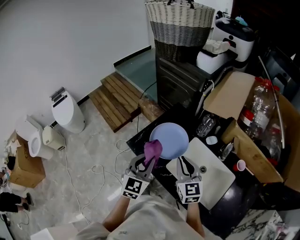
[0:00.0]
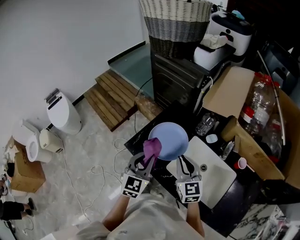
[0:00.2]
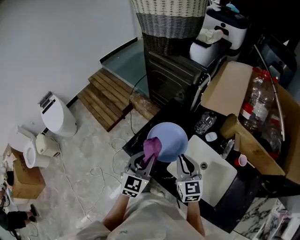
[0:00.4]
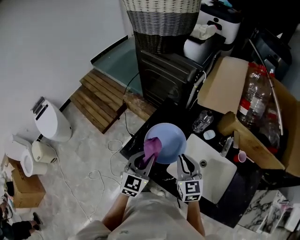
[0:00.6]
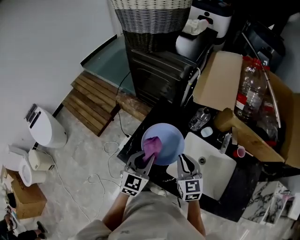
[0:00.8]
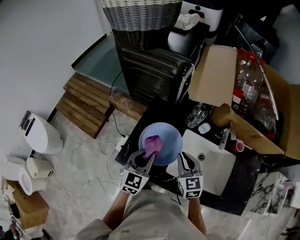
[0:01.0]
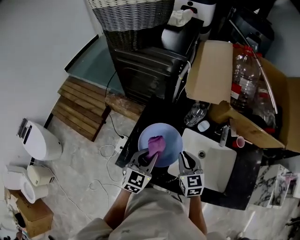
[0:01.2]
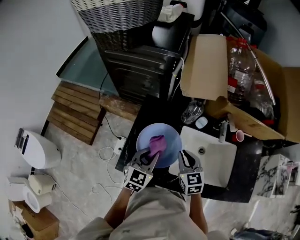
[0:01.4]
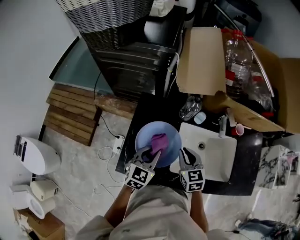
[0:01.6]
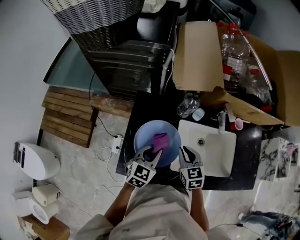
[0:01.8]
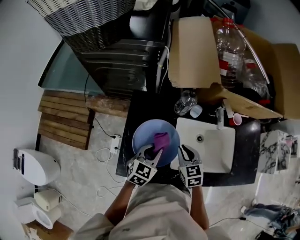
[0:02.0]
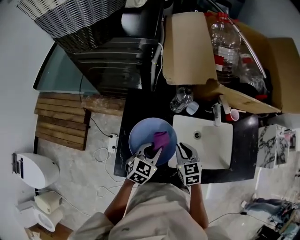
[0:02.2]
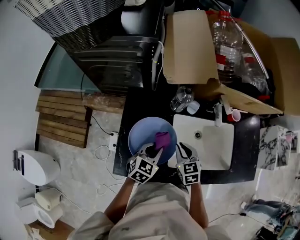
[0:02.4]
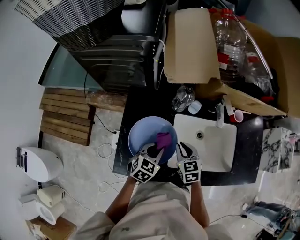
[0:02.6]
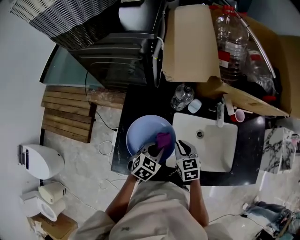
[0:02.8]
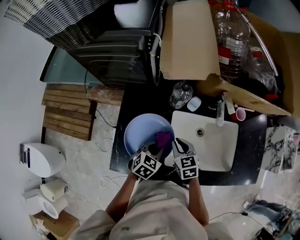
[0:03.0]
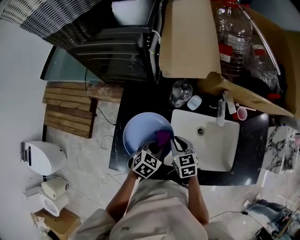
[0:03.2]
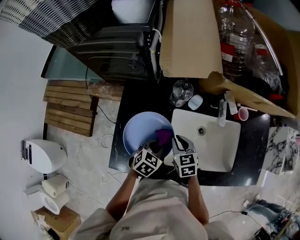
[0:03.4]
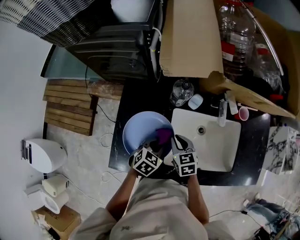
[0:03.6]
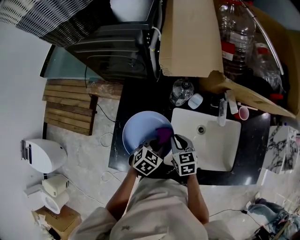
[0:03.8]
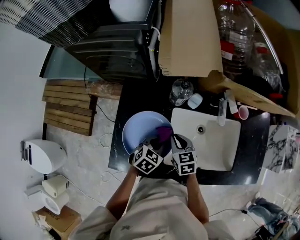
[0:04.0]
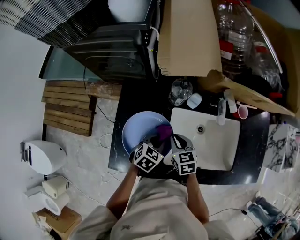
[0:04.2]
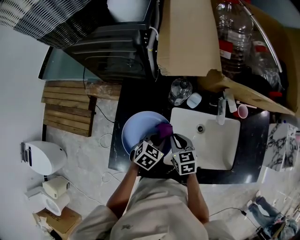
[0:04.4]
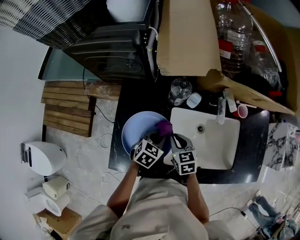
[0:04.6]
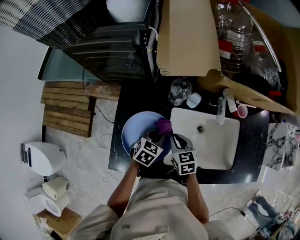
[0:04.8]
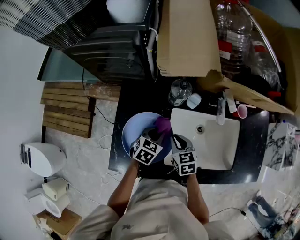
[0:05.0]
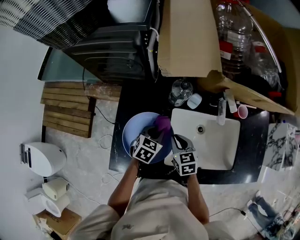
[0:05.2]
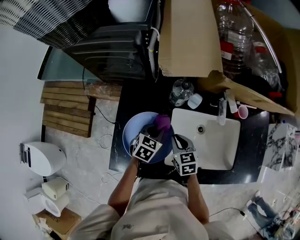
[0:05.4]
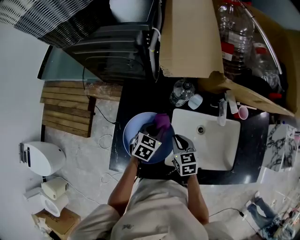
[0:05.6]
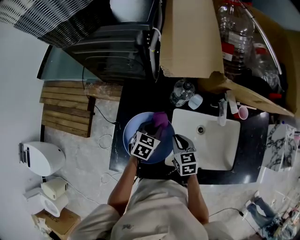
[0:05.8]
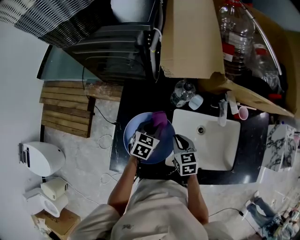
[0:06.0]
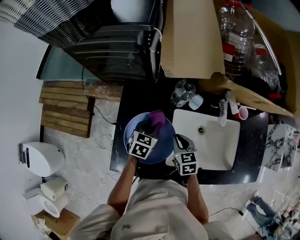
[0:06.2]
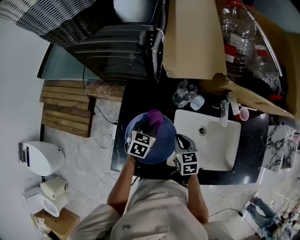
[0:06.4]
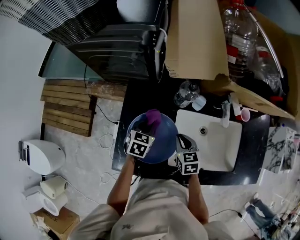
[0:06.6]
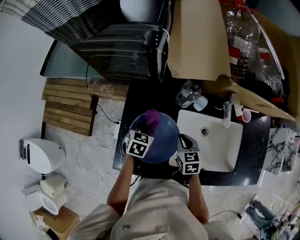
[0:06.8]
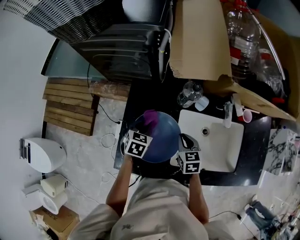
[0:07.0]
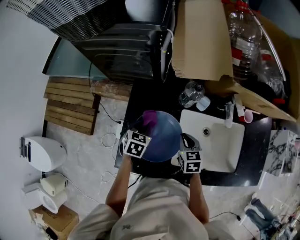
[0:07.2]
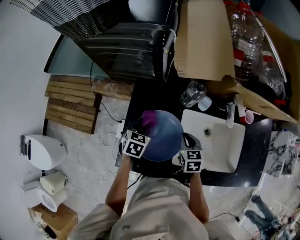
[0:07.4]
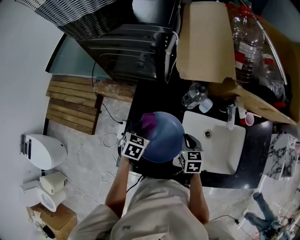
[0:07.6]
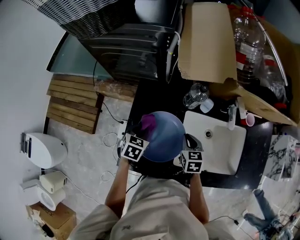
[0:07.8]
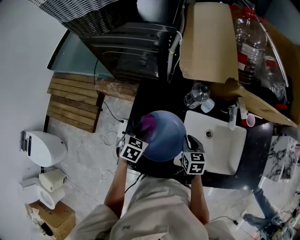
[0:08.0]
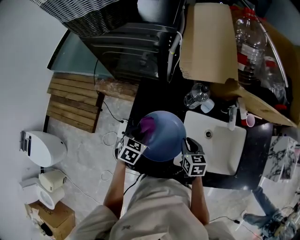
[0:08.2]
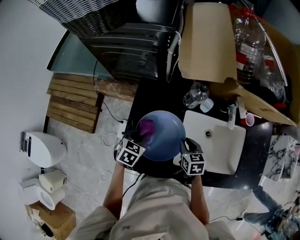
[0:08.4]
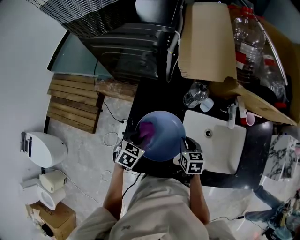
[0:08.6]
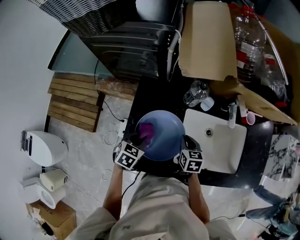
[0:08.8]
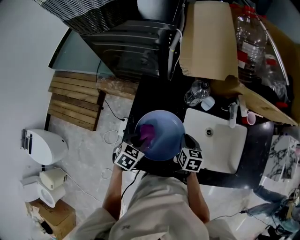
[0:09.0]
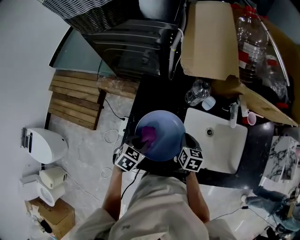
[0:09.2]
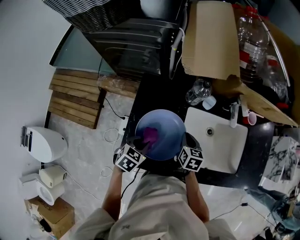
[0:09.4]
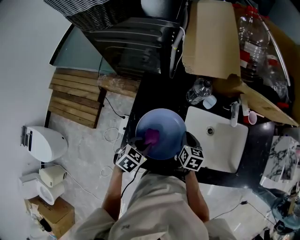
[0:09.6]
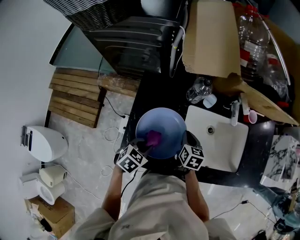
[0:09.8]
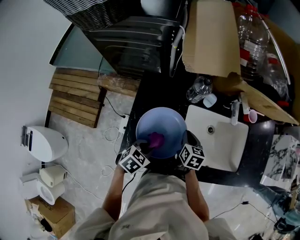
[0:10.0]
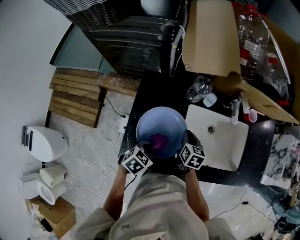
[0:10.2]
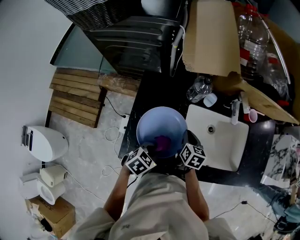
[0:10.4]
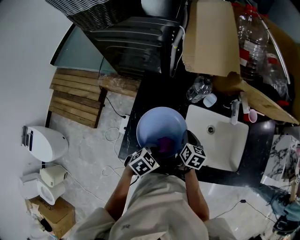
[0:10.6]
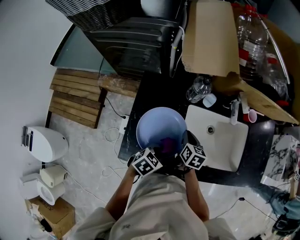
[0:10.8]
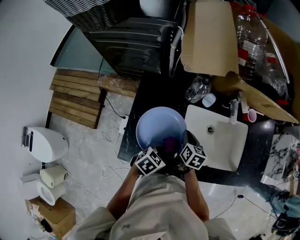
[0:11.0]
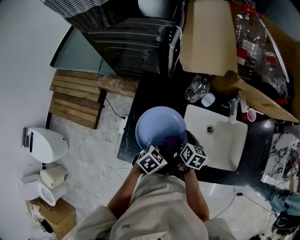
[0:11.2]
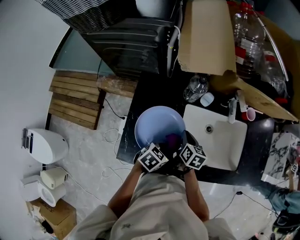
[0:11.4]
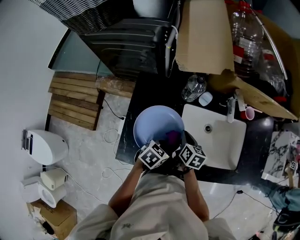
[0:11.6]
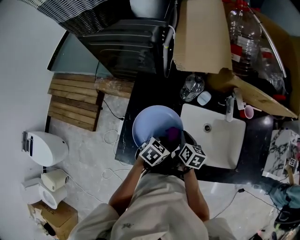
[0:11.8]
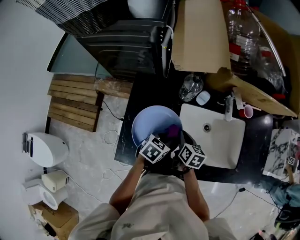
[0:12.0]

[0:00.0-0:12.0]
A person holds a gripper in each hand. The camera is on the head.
0:00.0 to 0:01.6: The left gripper moves approximately 20 cm, and rotates roughly 40 degrees, while the right gripper shifts some 10 cm downward, and rotates some 40 degrees.
0:01.6 to 0:03.0: The right gripper travels downward by approximately 10 cm. The left gripper travels downward and to the right by some 10 cm, and rotates about 30 degrees.
0:03.0 to 0:04.4: The grippers stay close to where they were, moving slightly.
0:04.4 to 0:06.0: The left gripper moves forward and to the left, about 10 cm.
0:06.0 to 0:07.6: The left gripper moves to the left, roughly 10 cm.
0:07.6 to 0:09.0: The left gripper moves backward, some 10 cm.
0:09.0 to 0:10.4: The left gripper heads to the right, covering about 10 cm.
0:10.4 to 0:12.0: The left gripper is displaced forward by roughly 10 cm.

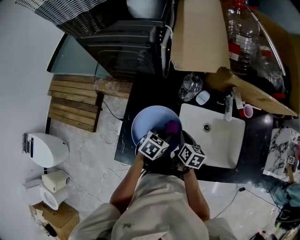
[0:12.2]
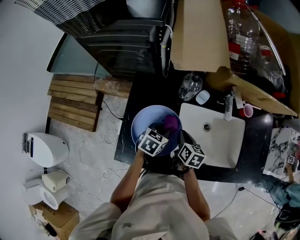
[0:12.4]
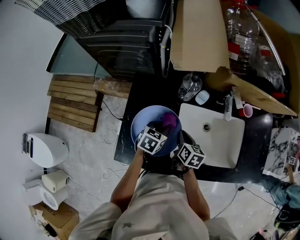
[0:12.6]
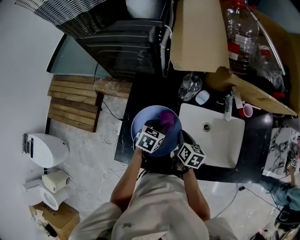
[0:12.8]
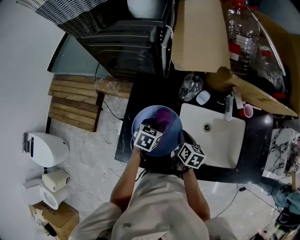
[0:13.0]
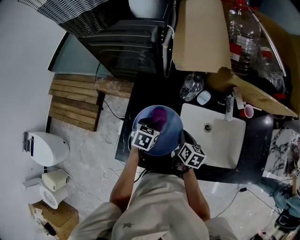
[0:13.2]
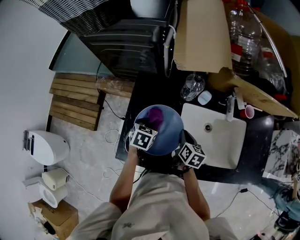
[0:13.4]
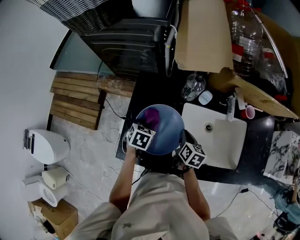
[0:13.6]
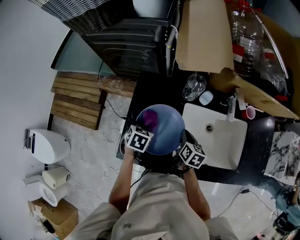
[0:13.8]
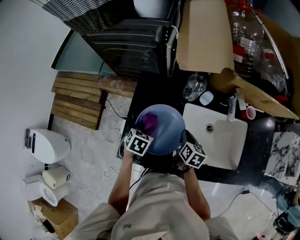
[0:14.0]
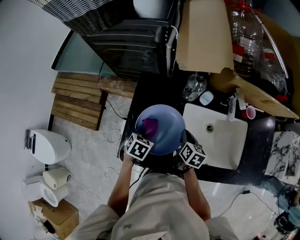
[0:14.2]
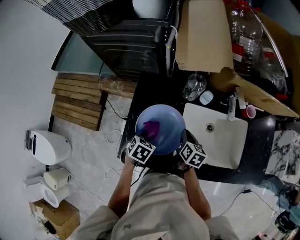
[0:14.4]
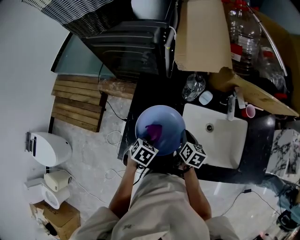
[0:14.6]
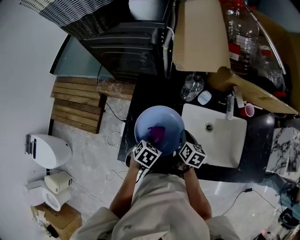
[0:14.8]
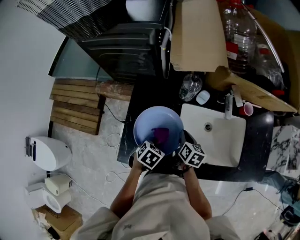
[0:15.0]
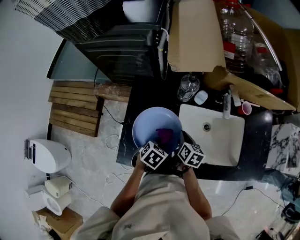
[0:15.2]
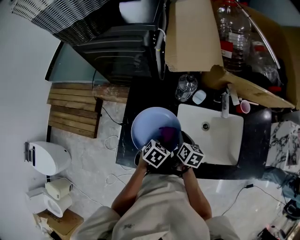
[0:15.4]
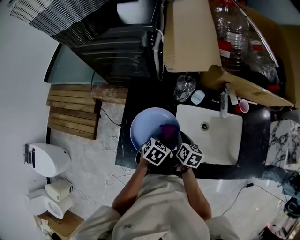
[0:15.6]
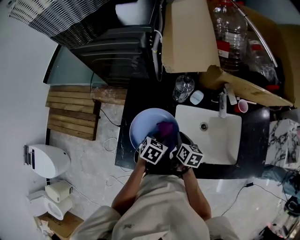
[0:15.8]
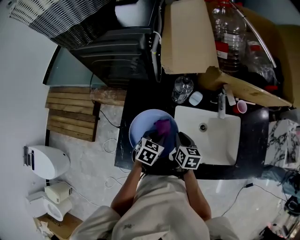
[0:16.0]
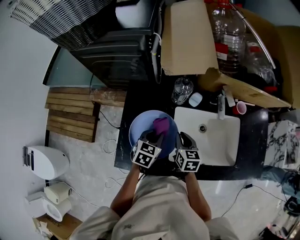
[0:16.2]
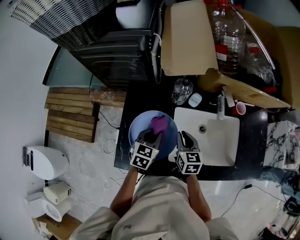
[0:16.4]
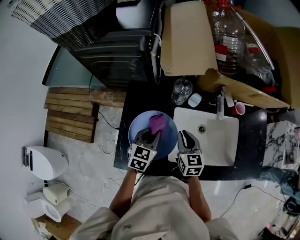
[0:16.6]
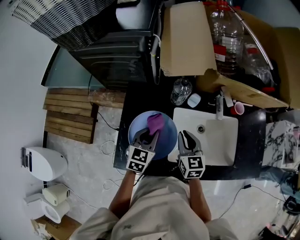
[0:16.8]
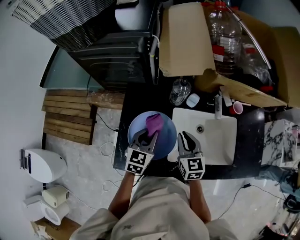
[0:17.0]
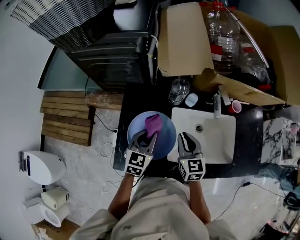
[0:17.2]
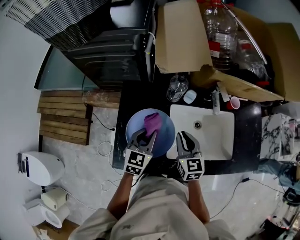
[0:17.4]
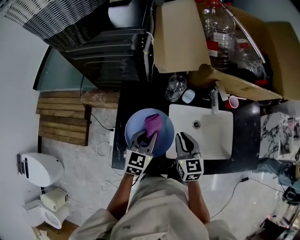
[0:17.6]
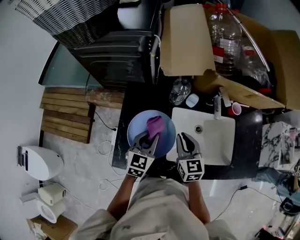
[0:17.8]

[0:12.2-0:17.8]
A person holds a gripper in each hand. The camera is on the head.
0:12.2 to 0:13.6: The left gripper shifts some 10 cm to the left, and turns by some 20 degrees.
0:13.6 to 0:15.0: The left gripper is displaced backward and to the right by some 10 cm.
0:15.0 to 0:16.4: The left gripper heads forward and upward, covering approximately 10 cm, and swivels approximately 30 degrees, while the right gripper moves upward, approximately 5 cm, and rotates roughly 30 degrees.
0:16.4 to 0:17.8: The left gripper shifts by approximately 5 cm. The right gripper heads upward, covering approximately 5 cm.

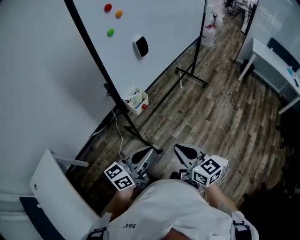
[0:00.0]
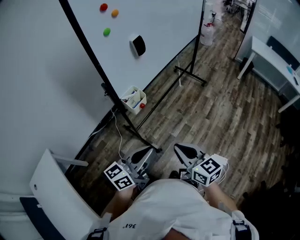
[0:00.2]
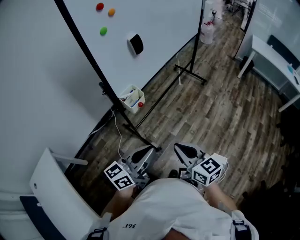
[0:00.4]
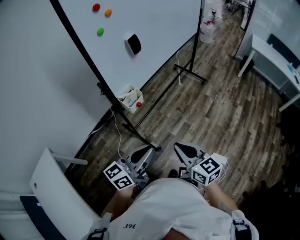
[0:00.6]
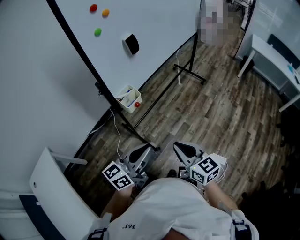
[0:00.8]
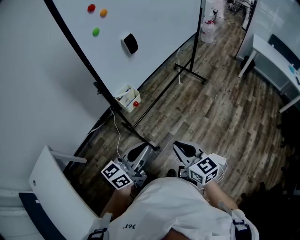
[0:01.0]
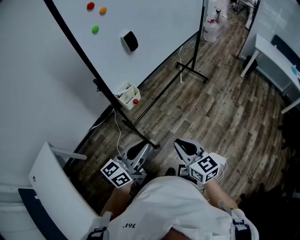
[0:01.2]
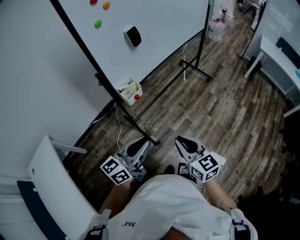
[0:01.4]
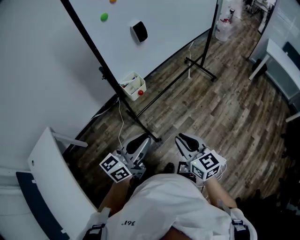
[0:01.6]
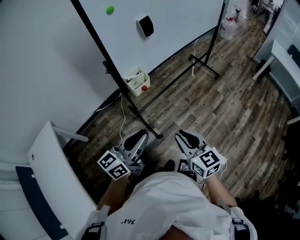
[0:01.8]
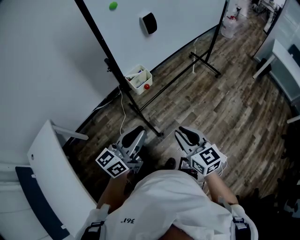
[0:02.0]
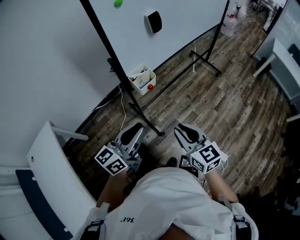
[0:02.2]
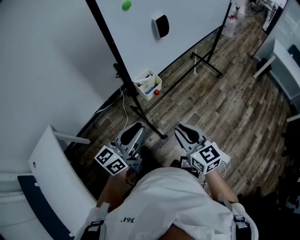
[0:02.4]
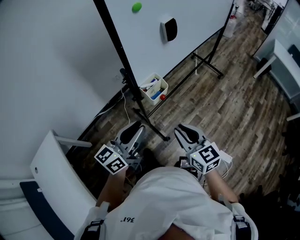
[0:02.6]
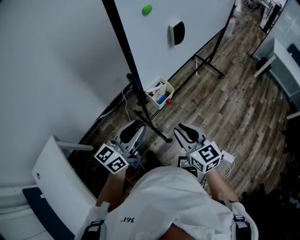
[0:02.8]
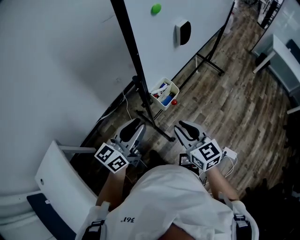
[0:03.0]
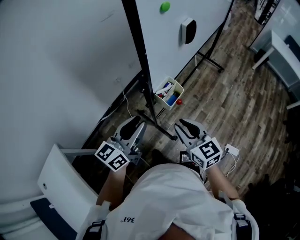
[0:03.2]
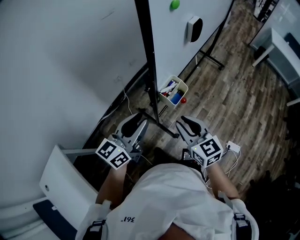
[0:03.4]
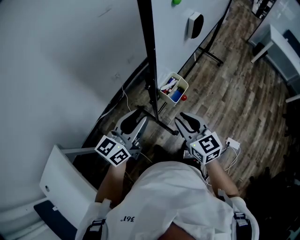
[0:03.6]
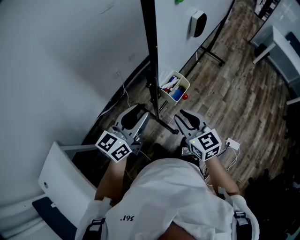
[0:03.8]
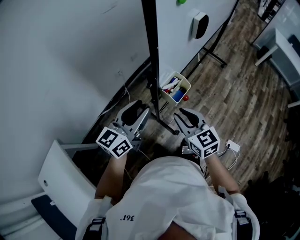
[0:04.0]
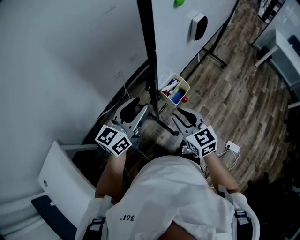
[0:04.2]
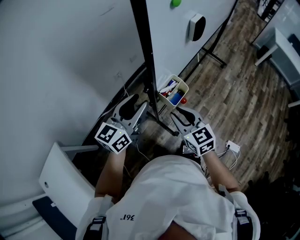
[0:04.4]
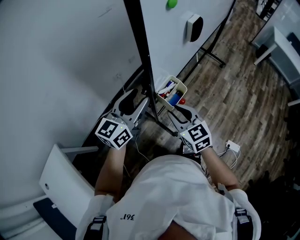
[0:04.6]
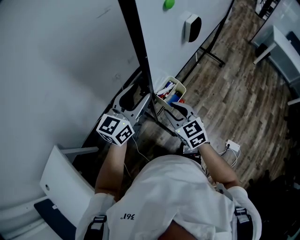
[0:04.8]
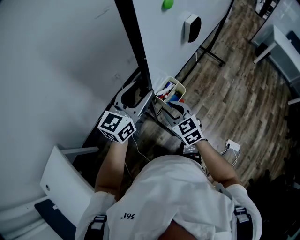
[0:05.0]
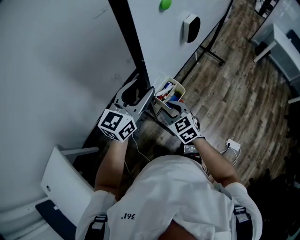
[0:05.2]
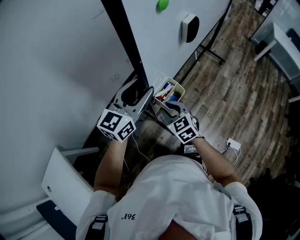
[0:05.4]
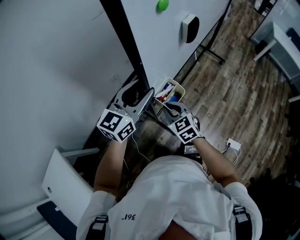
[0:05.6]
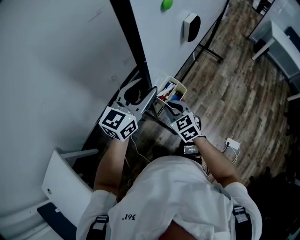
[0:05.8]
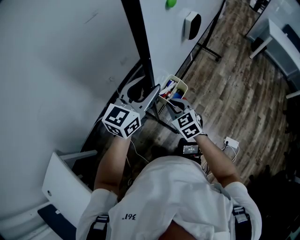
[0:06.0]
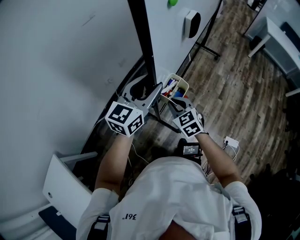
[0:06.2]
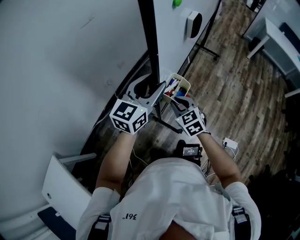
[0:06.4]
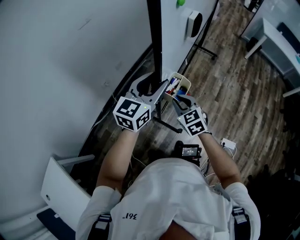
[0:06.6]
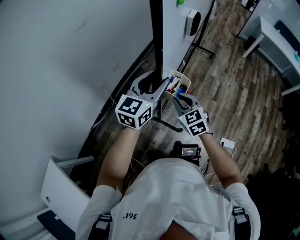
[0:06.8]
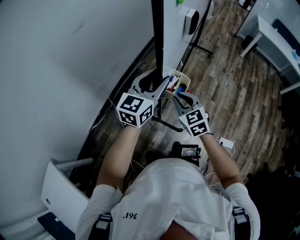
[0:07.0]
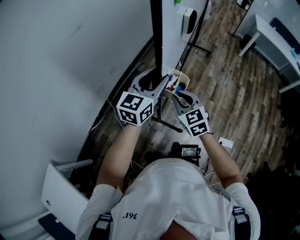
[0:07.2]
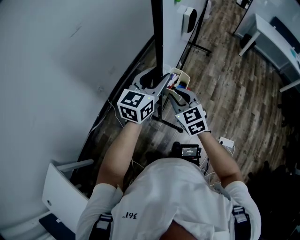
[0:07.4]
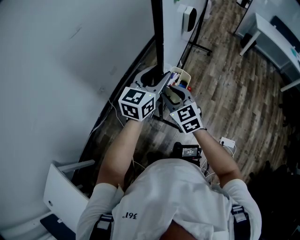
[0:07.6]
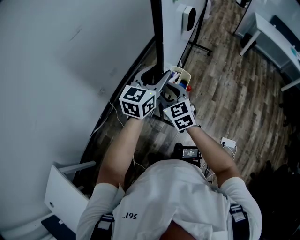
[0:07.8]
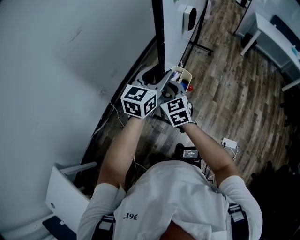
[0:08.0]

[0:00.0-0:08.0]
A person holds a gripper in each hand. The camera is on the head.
0:00.0 to 0:01.6: The right gripper is displaced to the right by some 5 cm.
0:01.6 to 0:03.2: Both grippers travel together to the left and forward, roughly 30 cm.
0:03.2 to 0:04.8: The right gripper travels forward and downward by roughly 10 cm. Meanwhile the left gripper goes roughly 10 cm forward, and opens up.
0:04.8 to 0:06.4: The two grippers go some 10 cm to the right and forward.
0:06.4 to 0:08.0: The right gripper travels forward and upward by roughly 10 cm, and opens up; the left gripper travels forward and to the right by roughly 10 cm.
